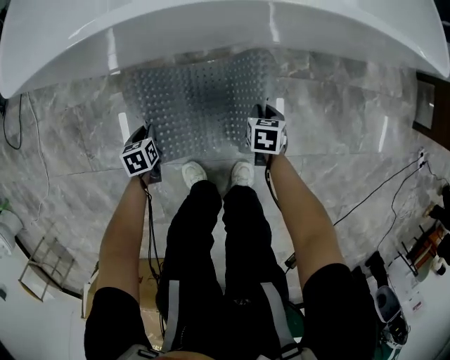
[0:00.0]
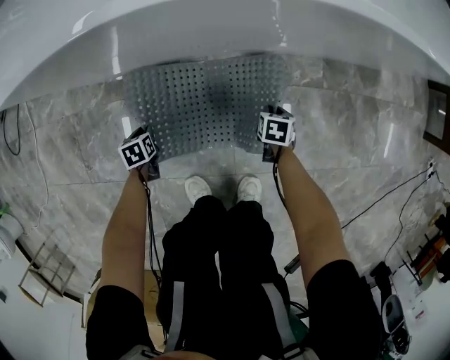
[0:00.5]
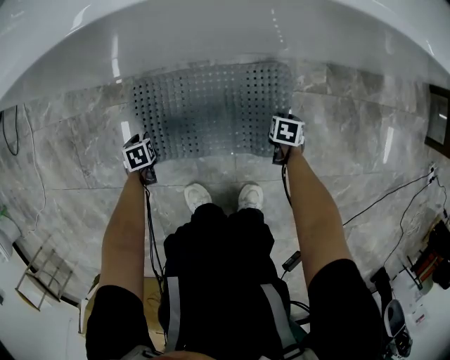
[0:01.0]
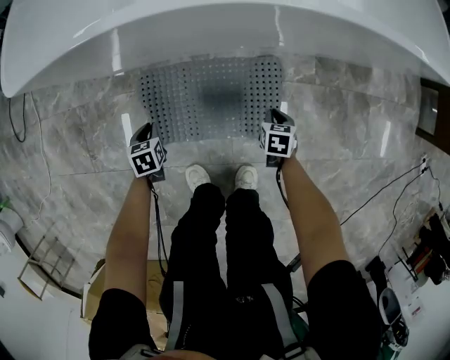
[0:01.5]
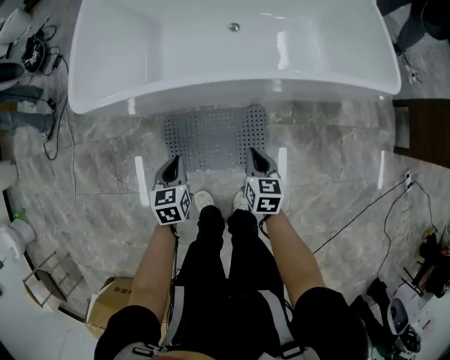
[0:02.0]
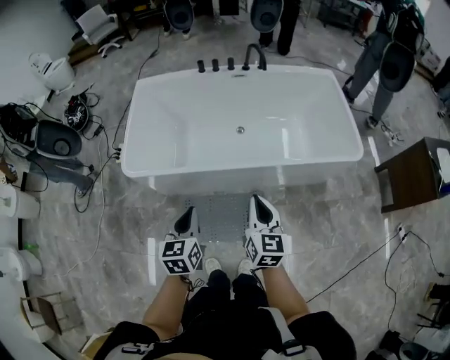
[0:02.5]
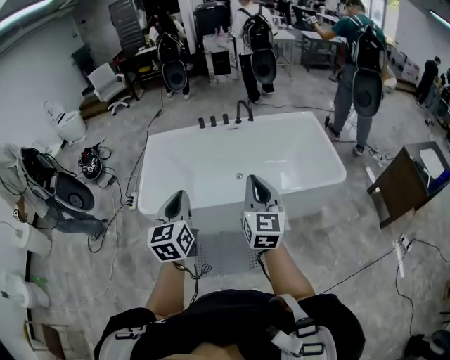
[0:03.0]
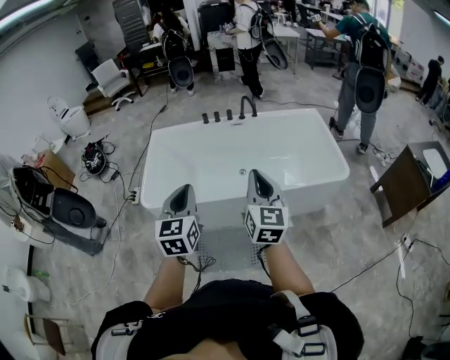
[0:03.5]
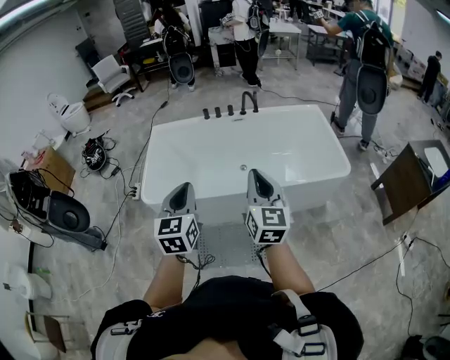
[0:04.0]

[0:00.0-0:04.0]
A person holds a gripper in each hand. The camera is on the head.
0:00.0 to 0:02.0: The grippers both shift upward by about 30 cm. The left gripper changes its angle by approximately 20 degrees. The right gripper rotates some 30 degrees.
0:02.0 to 0:04.0: Both grippers travel together upward, roughly 50 cm. The left gripper points its fingers about 40 degrees further upward. Meanwhile the right gripper points its fingers about 40 degrees further upward.

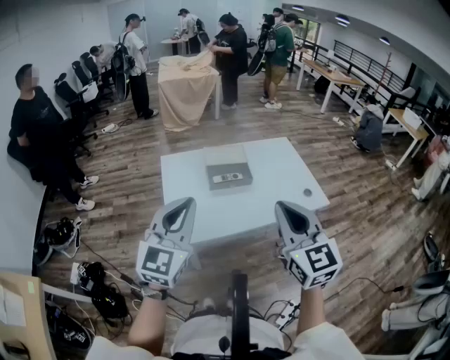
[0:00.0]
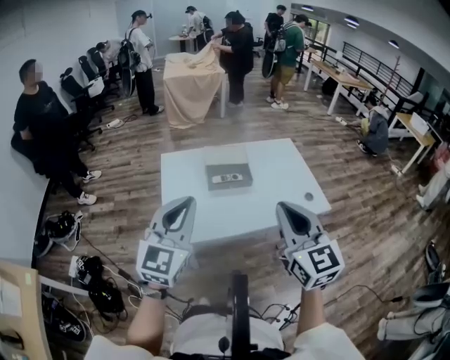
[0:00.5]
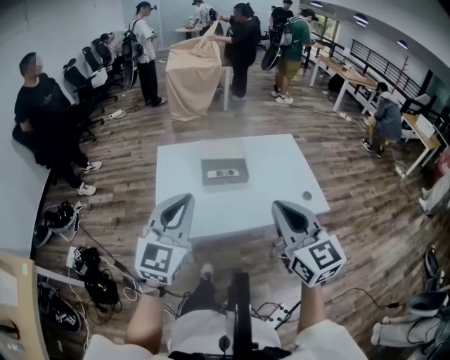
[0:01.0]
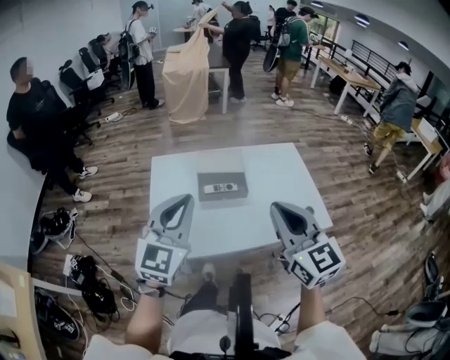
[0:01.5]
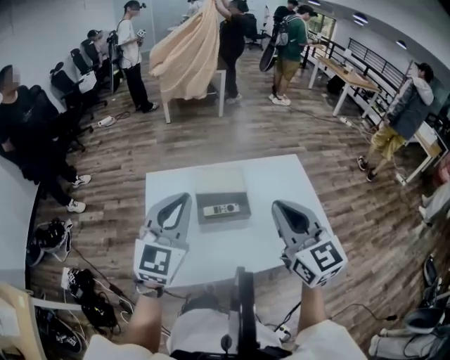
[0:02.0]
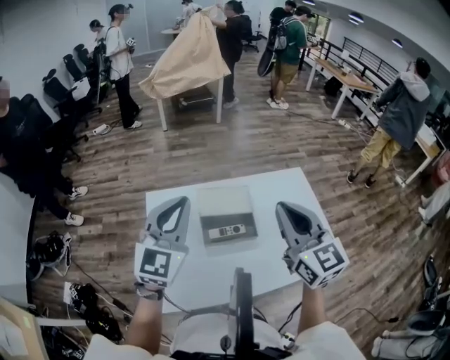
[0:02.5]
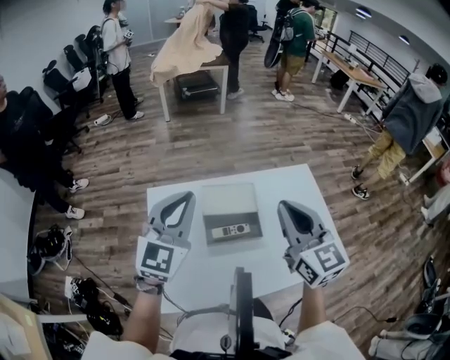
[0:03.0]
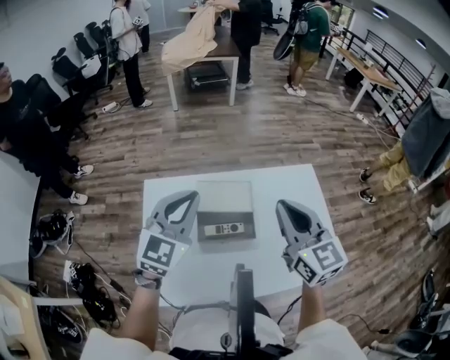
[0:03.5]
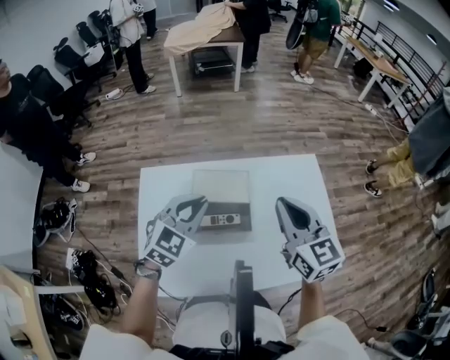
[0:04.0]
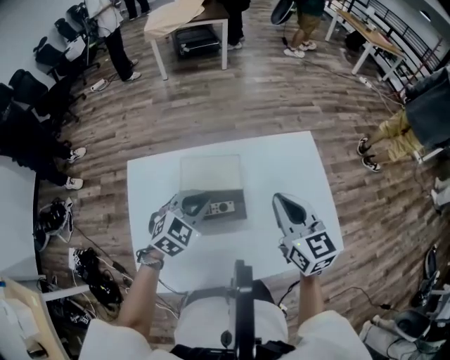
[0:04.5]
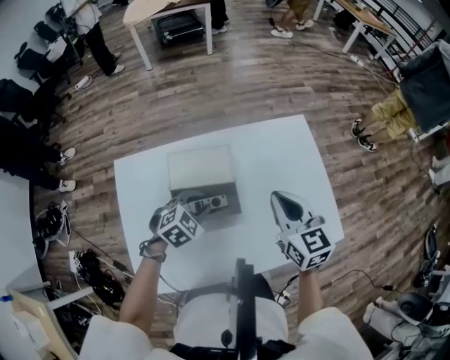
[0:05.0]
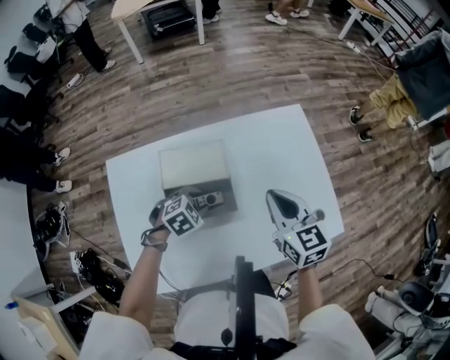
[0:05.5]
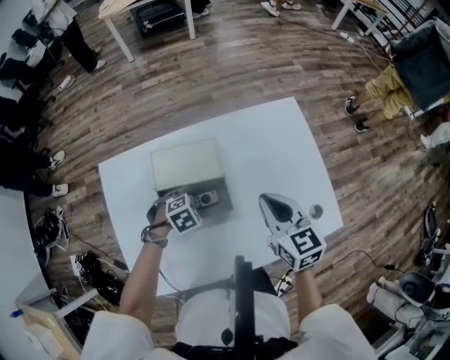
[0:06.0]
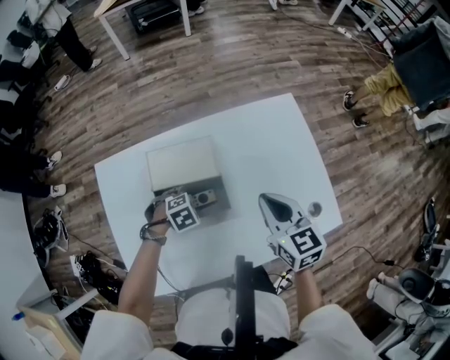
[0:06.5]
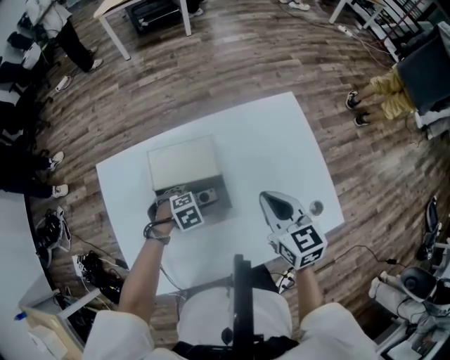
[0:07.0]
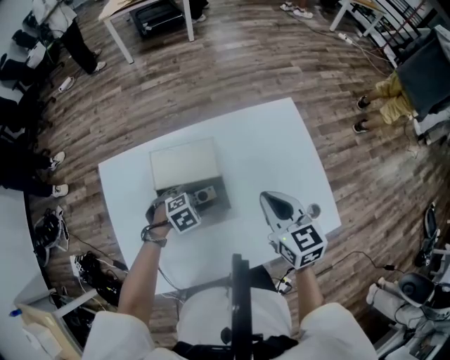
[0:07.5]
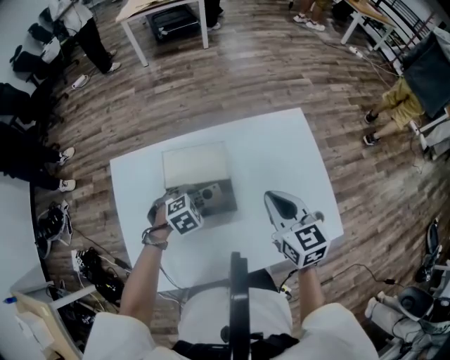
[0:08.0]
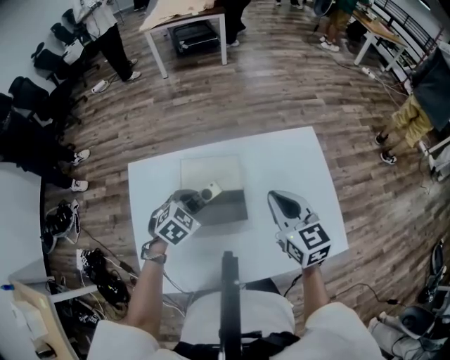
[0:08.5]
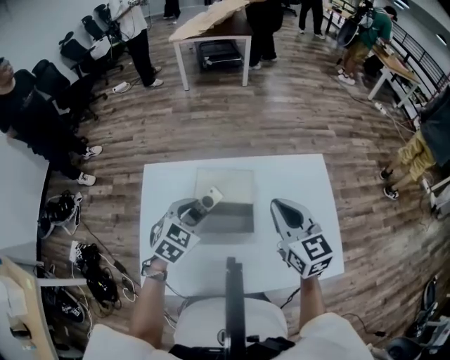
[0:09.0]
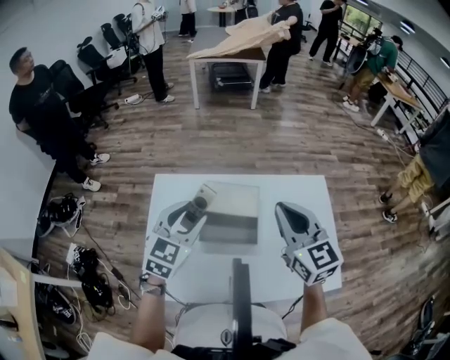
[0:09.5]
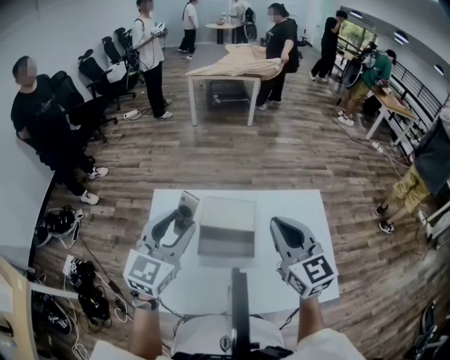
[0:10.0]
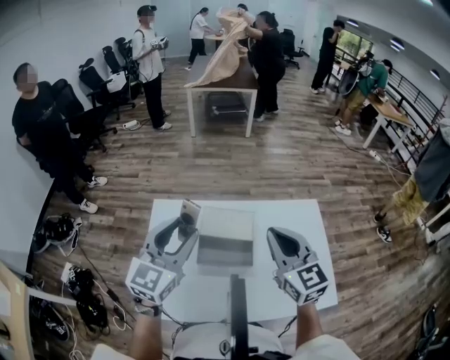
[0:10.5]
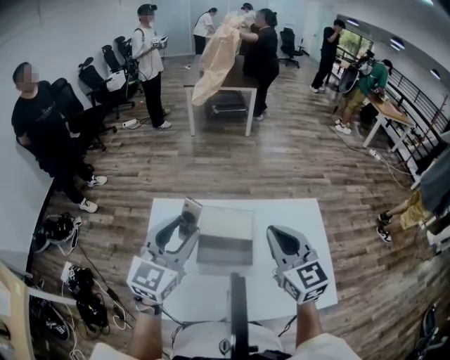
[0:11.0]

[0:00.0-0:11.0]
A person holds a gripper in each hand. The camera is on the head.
0:00.0 to 0:02.0: The grippers both shift forward by some 25 cm.
0:02.0 to 0:03.5: The two grippers go approximately 15 cm forward.
0:03.5 to 0:05.5: The right gripper is displaced downward and to the right by roughly 20 cm, and swivels approximately 20 degrees. The left gripper travels downward by approximately 35 cm, tips its fingers downward by some 50 degrees, and opens.
0:07.5 to 0:09.0: The right gripper moves upward, approximately 10 cm. The left gripper moves upward, approximately 20 cm, and tips its fingers upward by approximately 40 degrees.
0:09.0 to 0:11.0: The right gripper shifts about 10 cm upward; the left gripper travels upward by approximately 20 cm, and points its fingers approximately 30 degrees further upward.

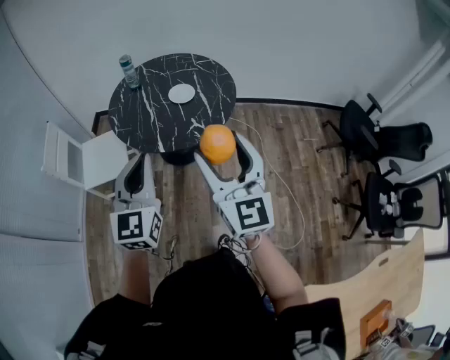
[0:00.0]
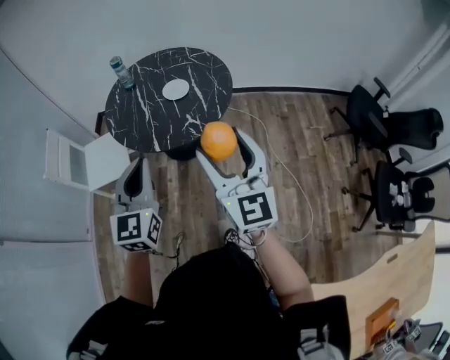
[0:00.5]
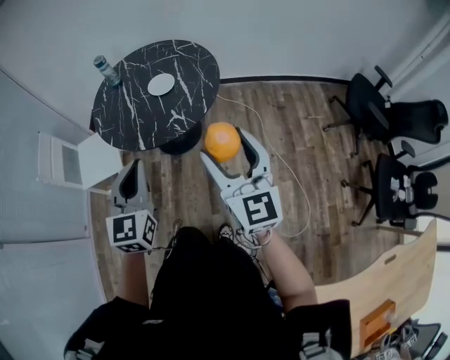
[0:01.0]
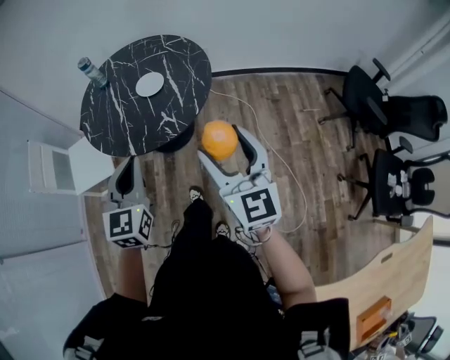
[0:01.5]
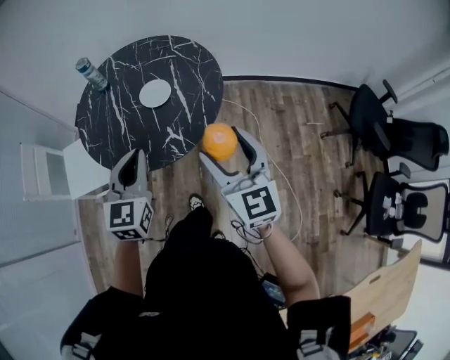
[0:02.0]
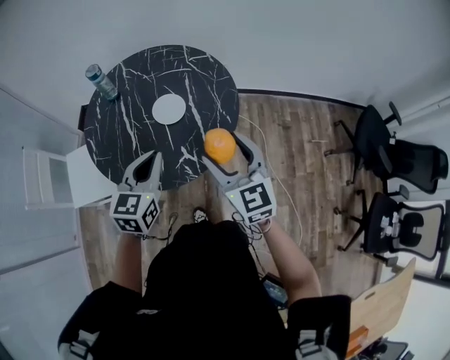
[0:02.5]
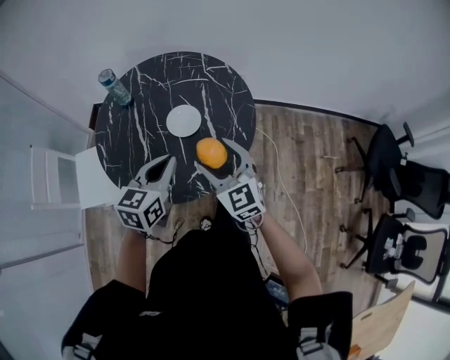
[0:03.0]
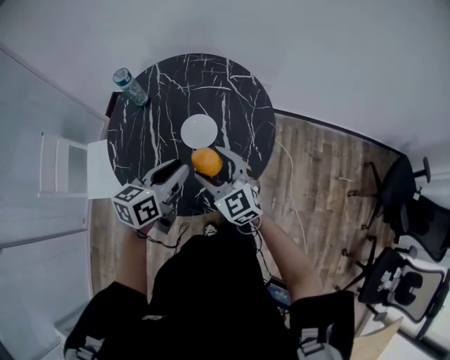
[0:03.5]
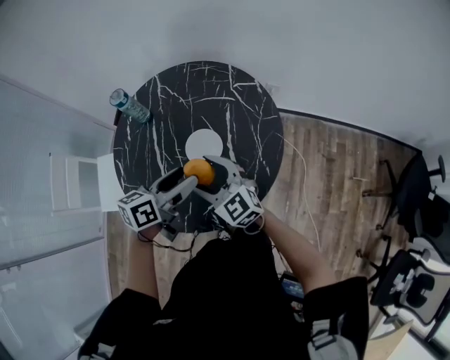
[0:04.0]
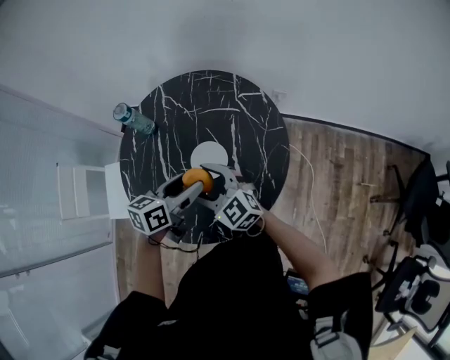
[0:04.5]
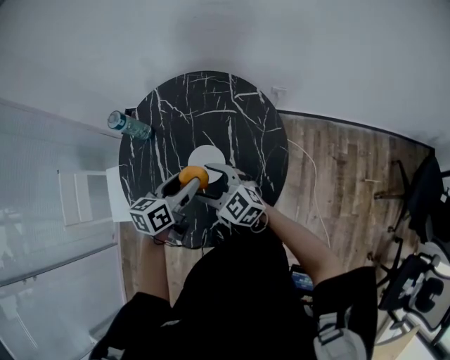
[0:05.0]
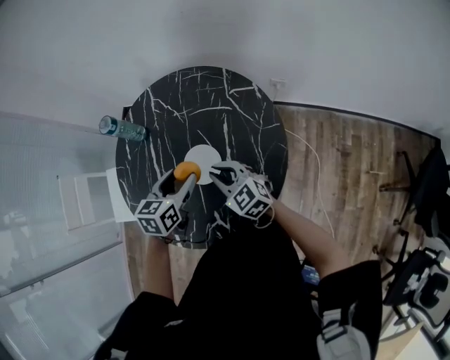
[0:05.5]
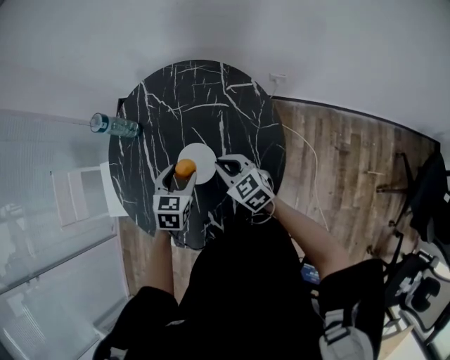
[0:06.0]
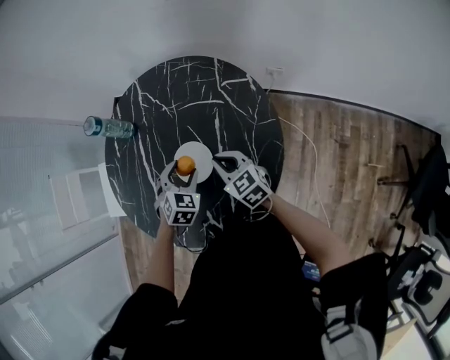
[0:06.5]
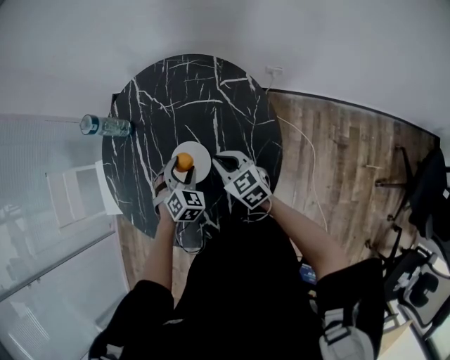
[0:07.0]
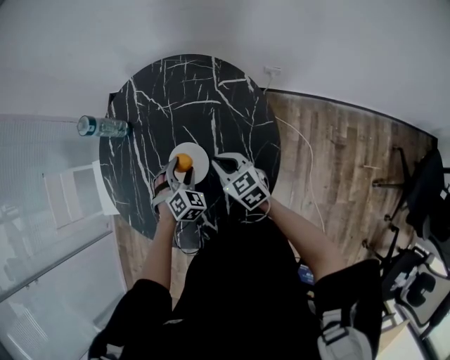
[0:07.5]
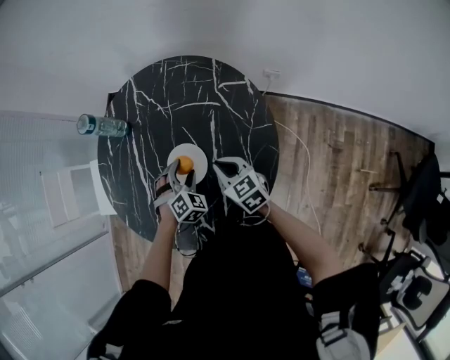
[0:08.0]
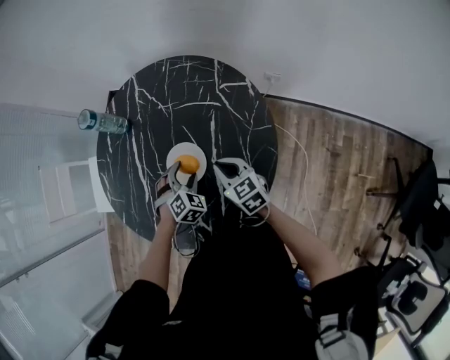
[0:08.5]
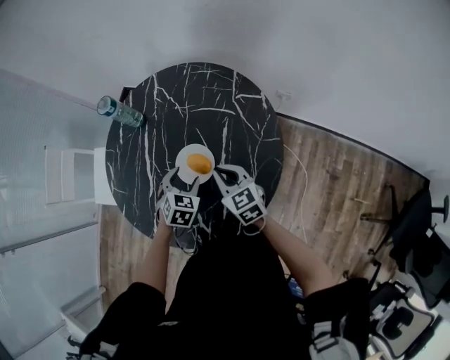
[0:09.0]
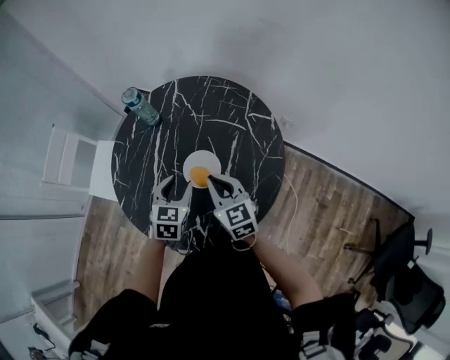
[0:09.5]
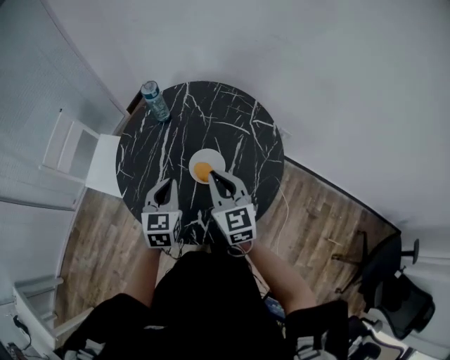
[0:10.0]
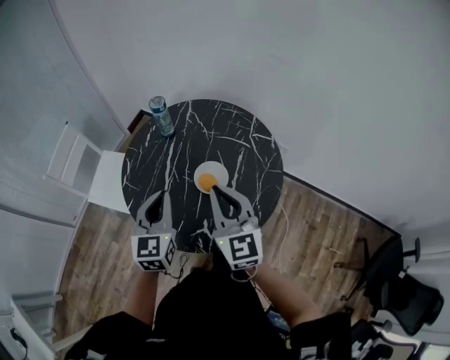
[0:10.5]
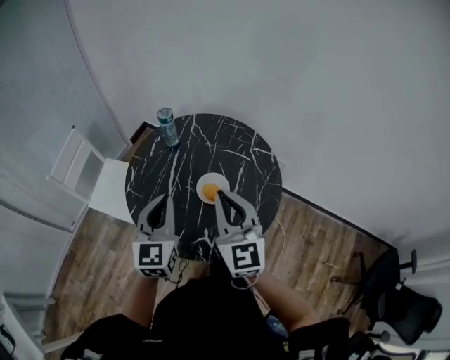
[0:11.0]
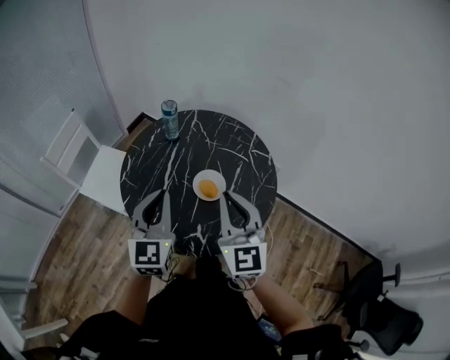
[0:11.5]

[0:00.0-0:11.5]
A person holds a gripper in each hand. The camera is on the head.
0:00.0 to 0:02.0: Both grippers travel together forward, to the right and downward, about 30 cm.
0:02.0 to 0:04.0: The right gripper shifts roughly 35 cm forward, to the left and downward, and turns by roughly 40 degrees, while the left gripper moves forward, some 25 cm, twists about 40 degrees counterclockwise, seen from behind, and opens.
0:04.0 to 0:06.0: The left gripper goes approximately 20 cm downward and forward, and changes its angle by about 50 degrees; the right gripper is displaced downward, to the right and forward by about 20 cm, turns by some 20 degrees, and closes.
0:06.0 to 0:07.5: The left gripper moves downward, roughly 10 cm, and swivels roughly 40 degrees.
0:07.5 to 0:09.5: The grippers both shift upward and to the left by about 15 cm. The left gripper rolls counterclockwise, seen from behind, by about 50 degrees.
0:09.5 to 0:11.5: The right gripper heads upward and backward, covering approximately 25 cm, and changes its angle by some 30 degrees. The left gripper goes roughly 25 cm upward, to the left and backward, points its fingers some 30 degrees further upward, and closes up.
